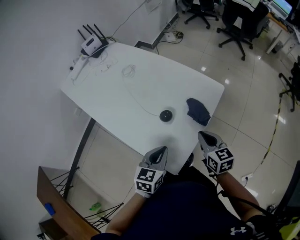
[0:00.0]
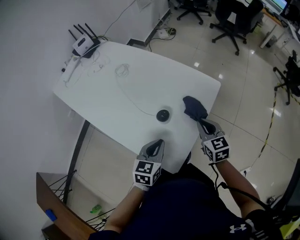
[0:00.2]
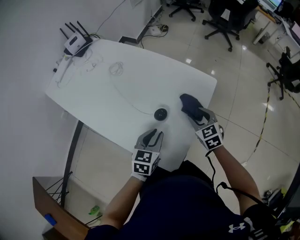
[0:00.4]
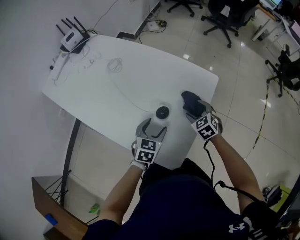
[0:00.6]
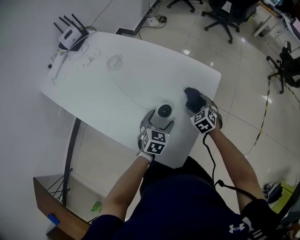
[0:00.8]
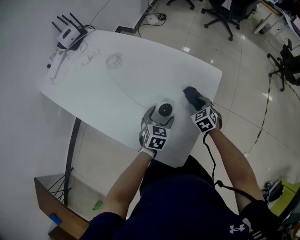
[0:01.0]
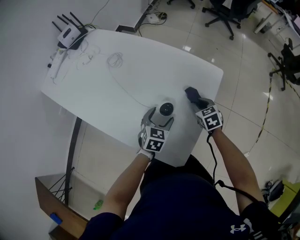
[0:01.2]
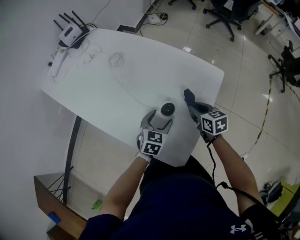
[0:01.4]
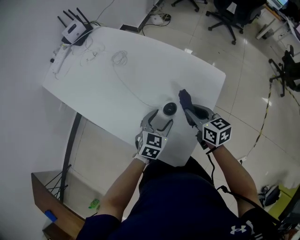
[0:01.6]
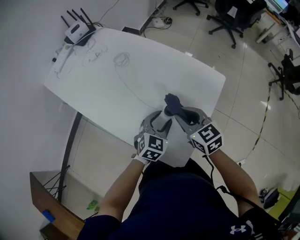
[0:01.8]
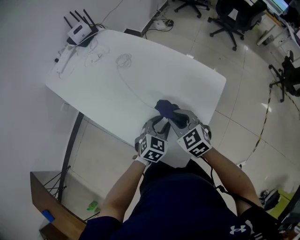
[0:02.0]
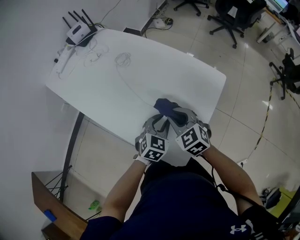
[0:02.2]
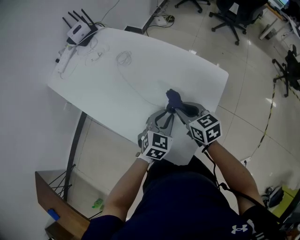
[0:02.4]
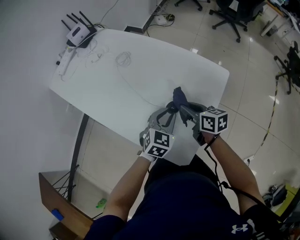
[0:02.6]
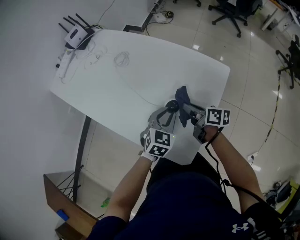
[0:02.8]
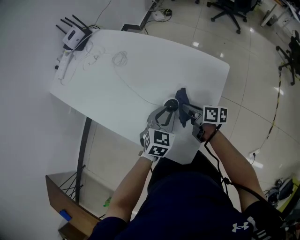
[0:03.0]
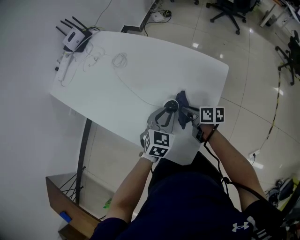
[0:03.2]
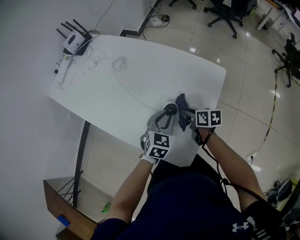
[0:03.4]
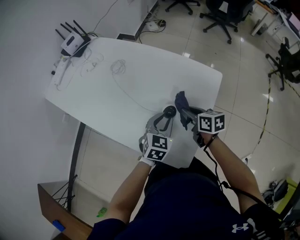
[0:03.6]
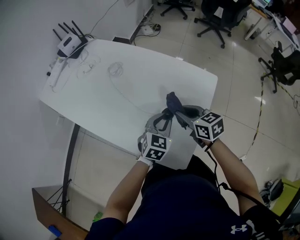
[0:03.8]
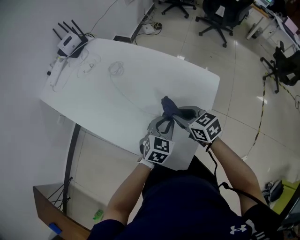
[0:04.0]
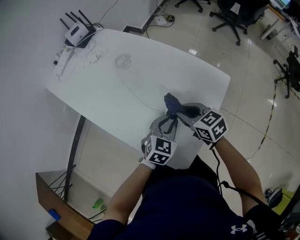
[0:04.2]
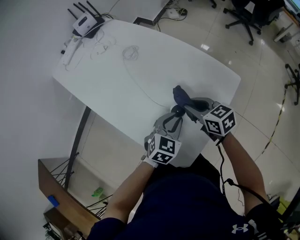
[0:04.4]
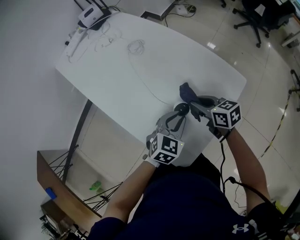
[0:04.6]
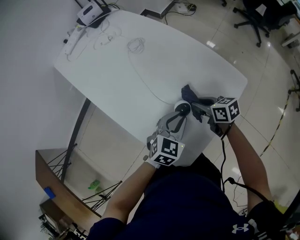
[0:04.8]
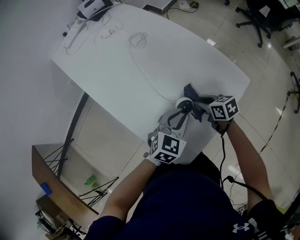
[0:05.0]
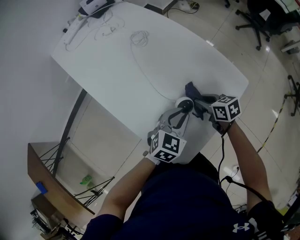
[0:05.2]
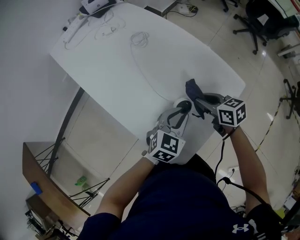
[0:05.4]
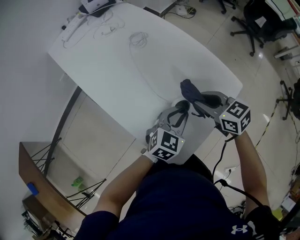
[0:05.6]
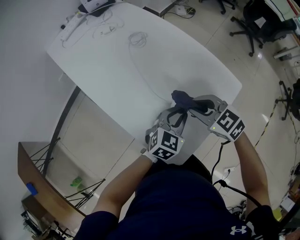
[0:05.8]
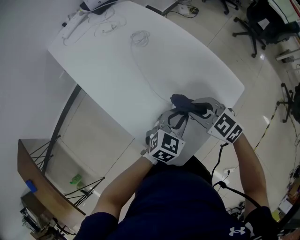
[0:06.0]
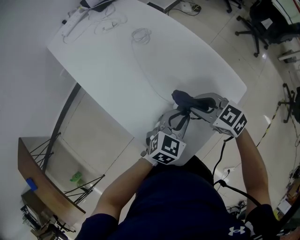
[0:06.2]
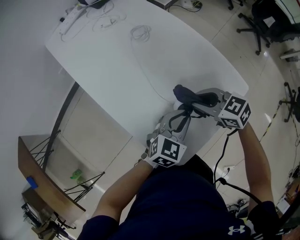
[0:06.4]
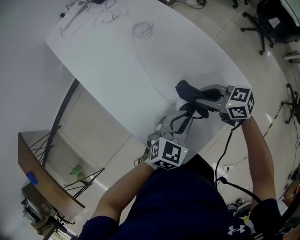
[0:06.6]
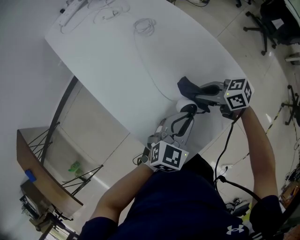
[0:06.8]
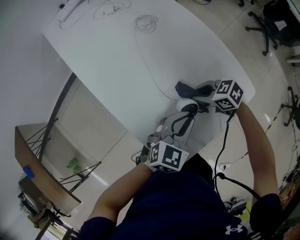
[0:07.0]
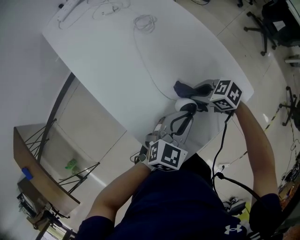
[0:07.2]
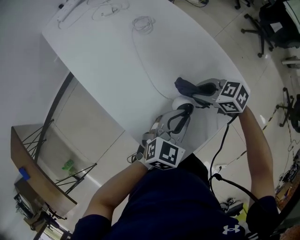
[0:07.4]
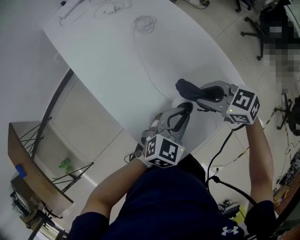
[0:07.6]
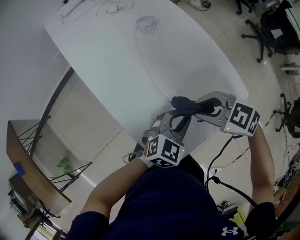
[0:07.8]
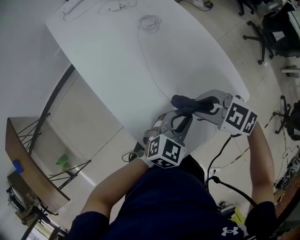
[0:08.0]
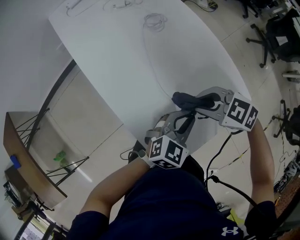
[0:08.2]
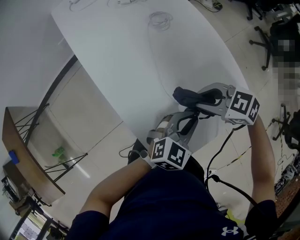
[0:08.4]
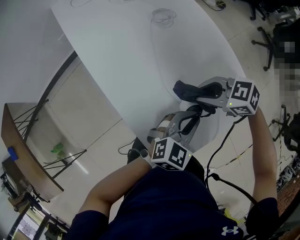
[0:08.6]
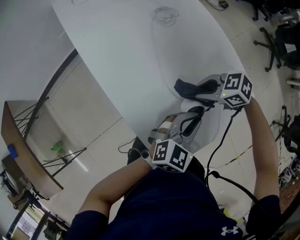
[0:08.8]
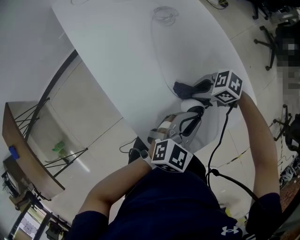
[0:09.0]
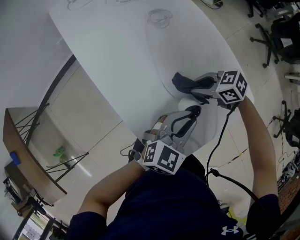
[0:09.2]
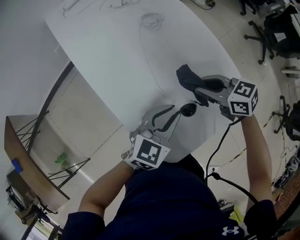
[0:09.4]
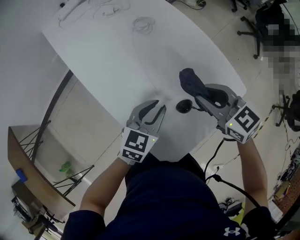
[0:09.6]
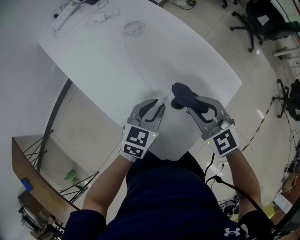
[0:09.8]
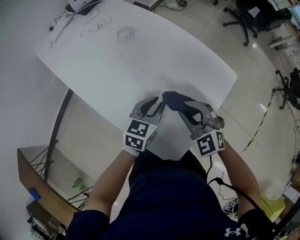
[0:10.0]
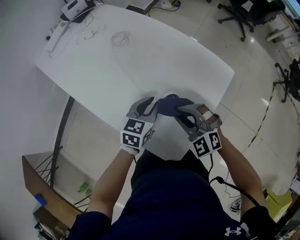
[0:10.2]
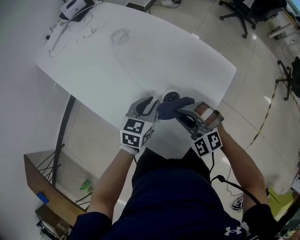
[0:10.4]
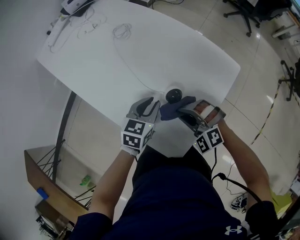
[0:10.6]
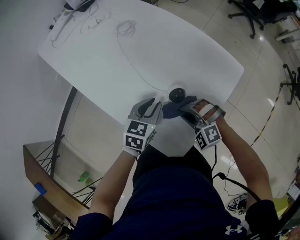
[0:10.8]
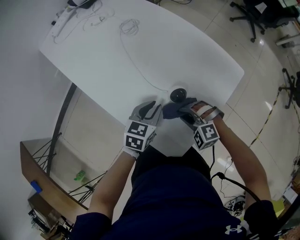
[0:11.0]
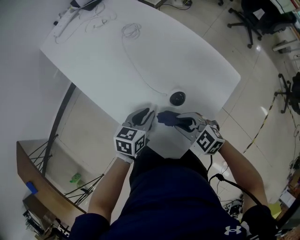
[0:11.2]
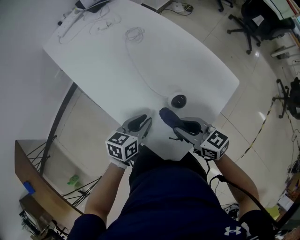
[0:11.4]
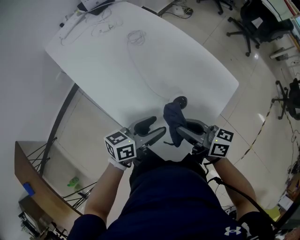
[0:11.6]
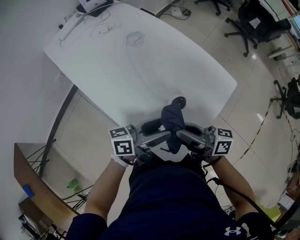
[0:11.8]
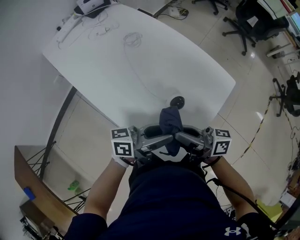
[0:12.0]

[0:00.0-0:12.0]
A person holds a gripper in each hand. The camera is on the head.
0:00.0 to 0:01.6: The right gripper goes some 10 cm to the left and forward, travels downward and back again, some 15 cm each way, and opens and closes again, while the left gripper shifts roughly 15 cm forward and downward, swivels some 20 degrees, and opens up.
0:01.6 to 0:03.0: The left gripper closes up. Meanwhile the right gripper shifts approximately 10 cm downward, and changes its angle by some 40 degrees.
0:03.0 to 0:04.4: The right gripper moves upward, roughly 5 cm, and rotates around the line of its fingers by roughly 40 degrees, counterclockwise from behind.
0:04.4 to 0:06.0: The right gripper reaches roughly 10 cm downward, then returns, and rotates roughly 40 degrees.
0:06.0 to 0:07.6: The right gripper moves some 10 cm downward and comes back.
0:07.6 to 0:09.0: The right gripper heads downward, covering approximately 10 cm, and changes its angle by roughly 30 degrees.
0:09.0 to 0:10.4: The left gripper moves approximately 5 cm. The right gripper changes place by some 15 cm, and rotates approximately 70 degrees.
0:10.4 to 0:12.0: The two grippers go some 10 cm upward. The right gripper rolls clockwise, seen from behind, by about 100 degrees; the left gripper points its fingers roughly 50 degrees further upward.

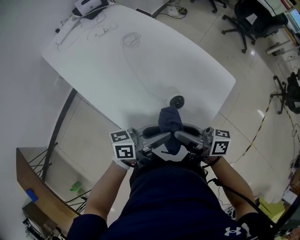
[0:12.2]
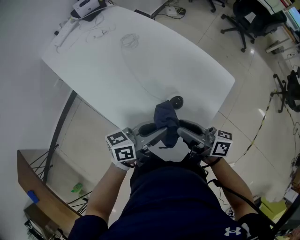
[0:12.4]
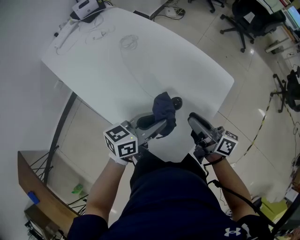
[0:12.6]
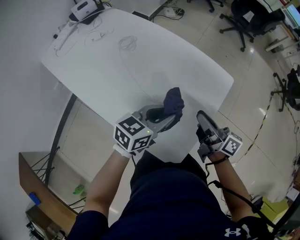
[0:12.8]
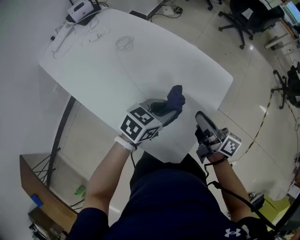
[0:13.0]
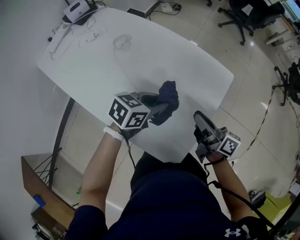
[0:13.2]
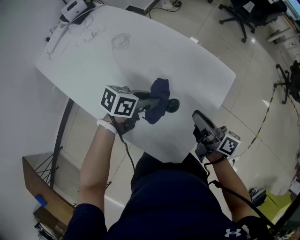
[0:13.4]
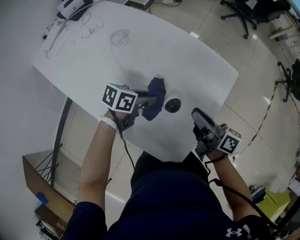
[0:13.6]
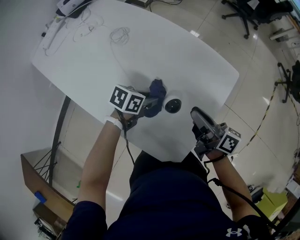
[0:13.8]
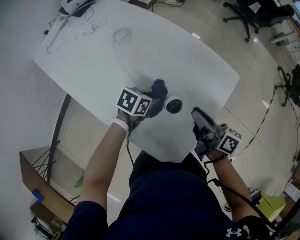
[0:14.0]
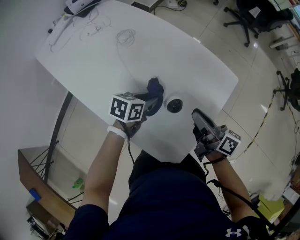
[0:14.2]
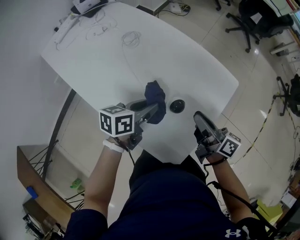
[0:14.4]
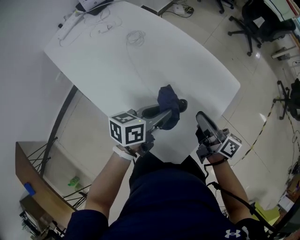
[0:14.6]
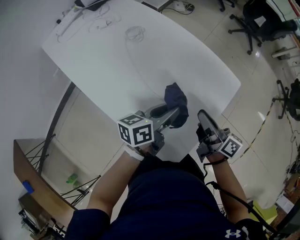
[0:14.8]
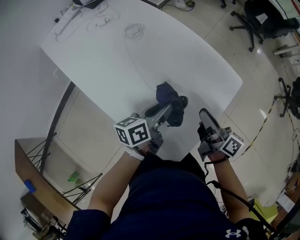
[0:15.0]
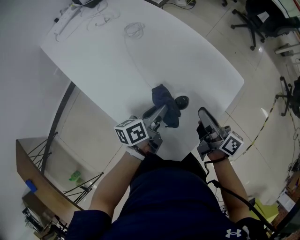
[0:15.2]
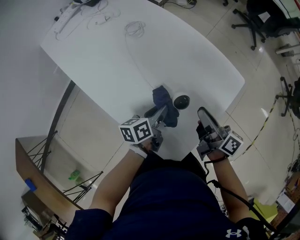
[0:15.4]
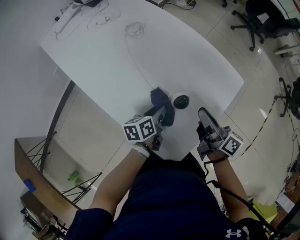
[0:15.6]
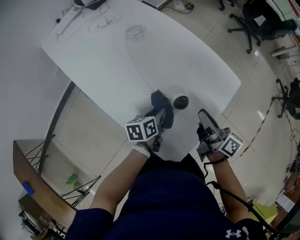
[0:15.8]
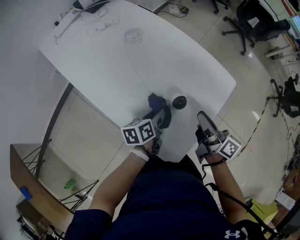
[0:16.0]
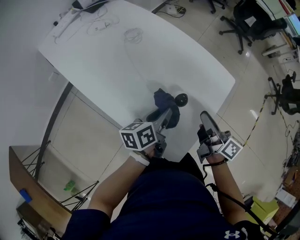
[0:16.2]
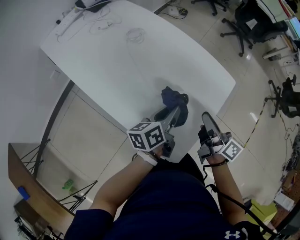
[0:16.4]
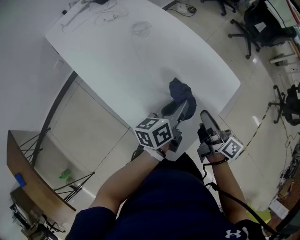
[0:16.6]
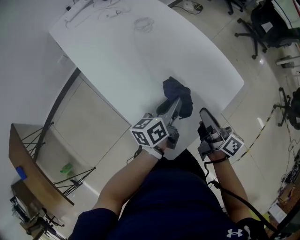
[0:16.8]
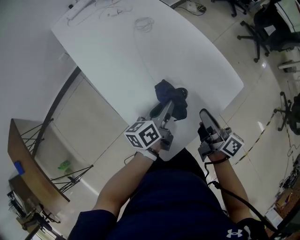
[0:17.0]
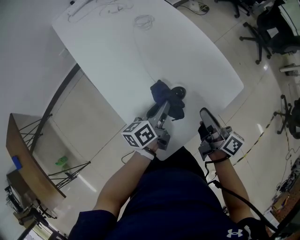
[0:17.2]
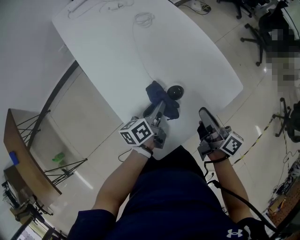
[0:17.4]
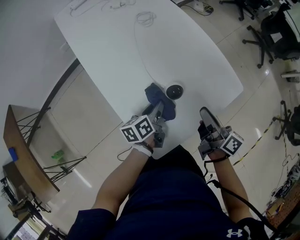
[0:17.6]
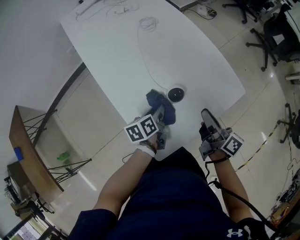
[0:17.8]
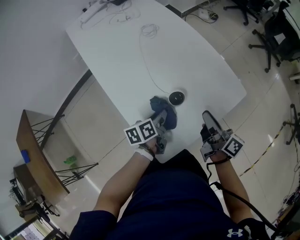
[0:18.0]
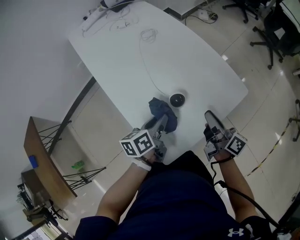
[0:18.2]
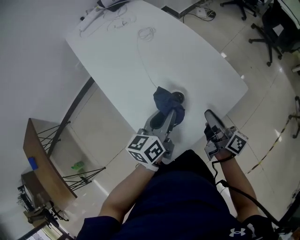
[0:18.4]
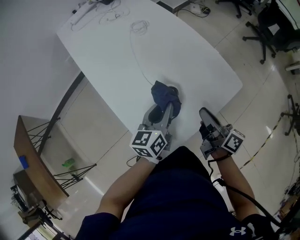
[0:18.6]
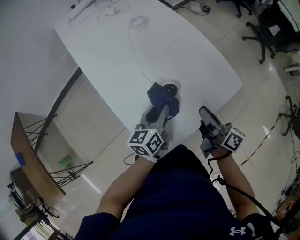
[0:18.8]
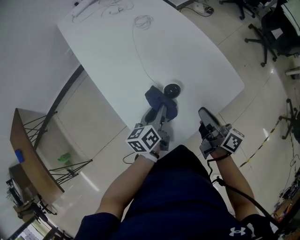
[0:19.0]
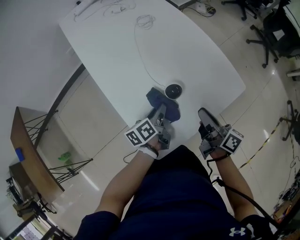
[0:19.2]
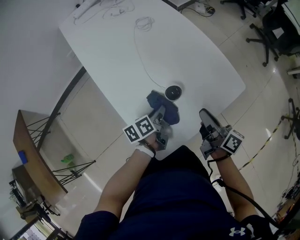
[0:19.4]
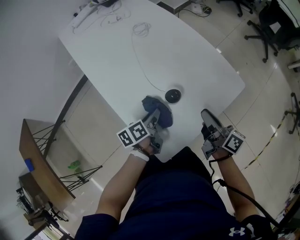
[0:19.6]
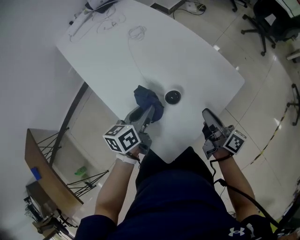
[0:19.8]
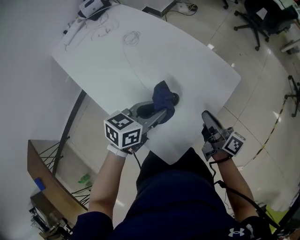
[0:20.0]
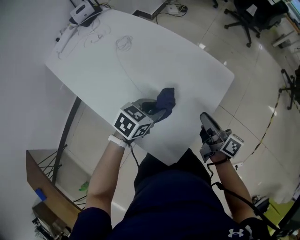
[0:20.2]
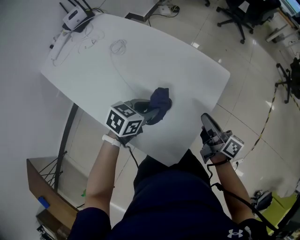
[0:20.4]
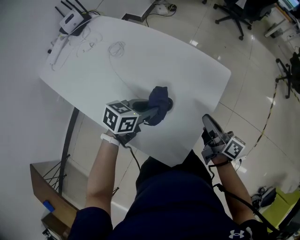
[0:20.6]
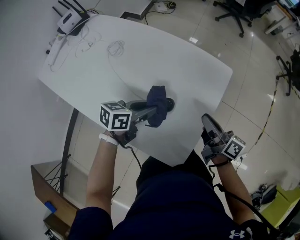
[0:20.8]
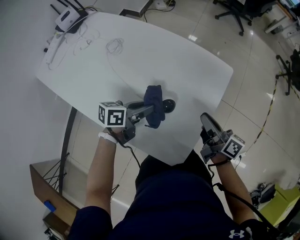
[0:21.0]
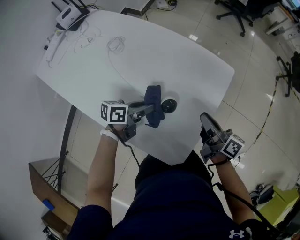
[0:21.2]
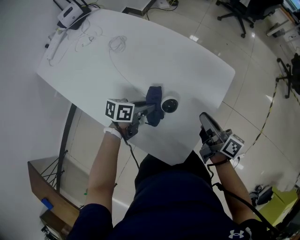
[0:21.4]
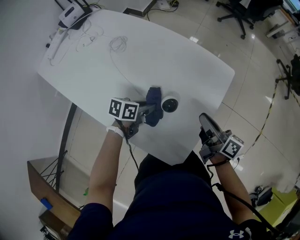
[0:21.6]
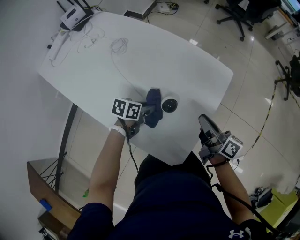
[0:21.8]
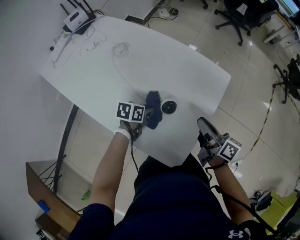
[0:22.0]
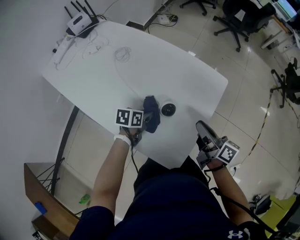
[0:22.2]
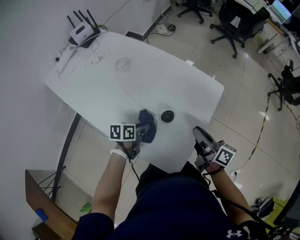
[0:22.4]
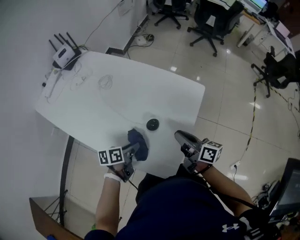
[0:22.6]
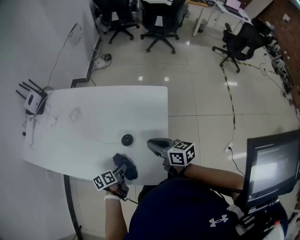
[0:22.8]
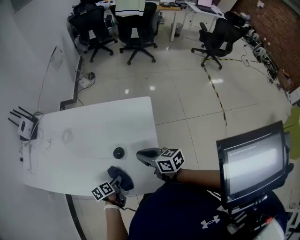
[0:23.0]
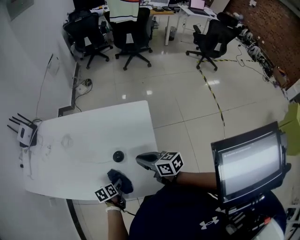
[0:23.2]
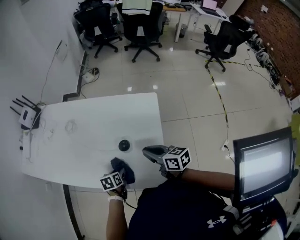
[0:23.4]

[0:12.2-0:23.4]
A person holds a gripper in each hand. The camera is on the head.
0:12.2 to 0:13.8: The right gripper heads forward and to the right, covering about 10 cm, and turns by some 30 degrees, while the left gripper goes some 20 cm downward and forward, and points its fingers approximately 50 degrees further downward.
0:13.8 to 0:15.4: The left gripper moves approximately 15 cm upward and comes back, and changes its angle by about 50 degrees.
0:15.4 to 0:17.0: The left gripper is displaced upward by roughly 5 cm.
0:17.0 to 0:18.6: The left gripper moves roughly 10 cm downward and comes back, and rotates approximately 20 degrees.
0:18.6 to 0:20.2: The left gripper goes up and down, some 15 cm each way, reversing 2 times, and swivels some 70 degrees.
0:20.2 to 0:21.8: The left gripper heads downward and to the left, covering roughly 10 cm, and turns by roughly 30 degrees.
0:21.8 to 0:23.4: The two grippers go about 10 cm backward.
